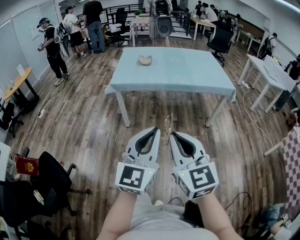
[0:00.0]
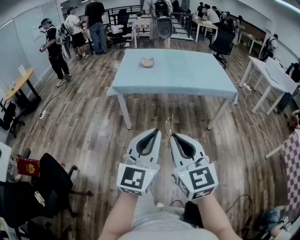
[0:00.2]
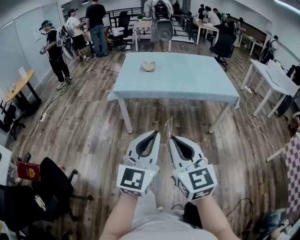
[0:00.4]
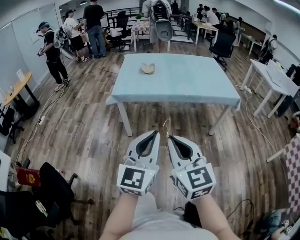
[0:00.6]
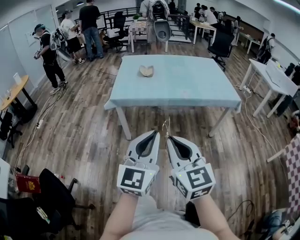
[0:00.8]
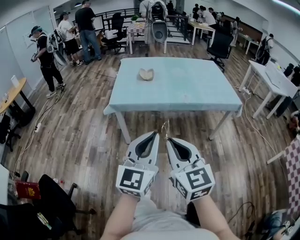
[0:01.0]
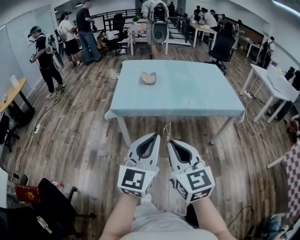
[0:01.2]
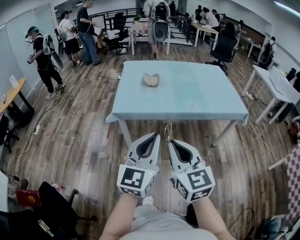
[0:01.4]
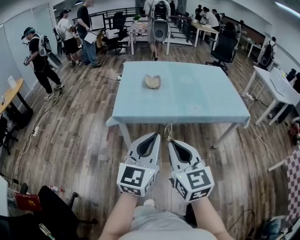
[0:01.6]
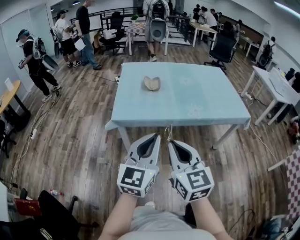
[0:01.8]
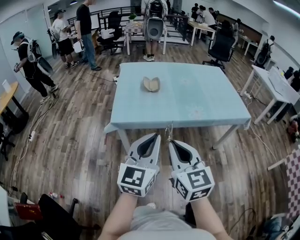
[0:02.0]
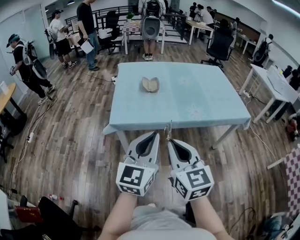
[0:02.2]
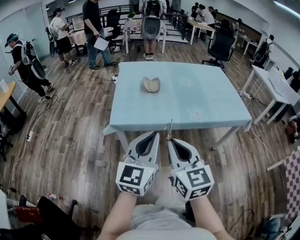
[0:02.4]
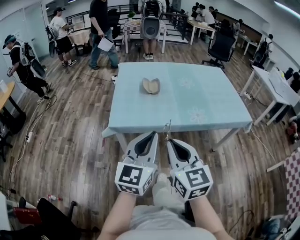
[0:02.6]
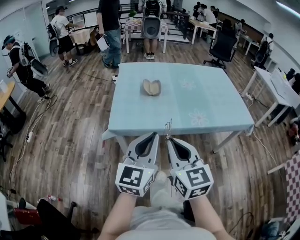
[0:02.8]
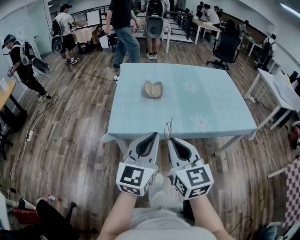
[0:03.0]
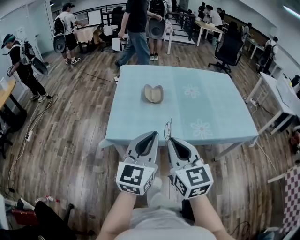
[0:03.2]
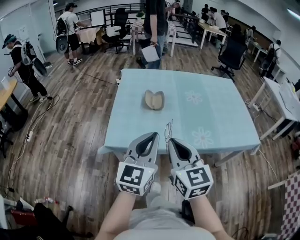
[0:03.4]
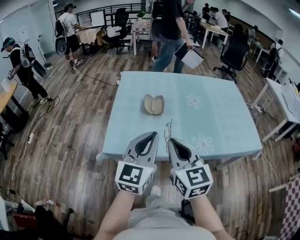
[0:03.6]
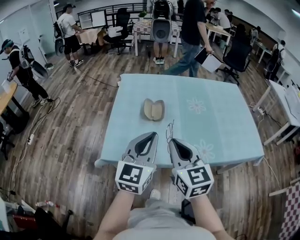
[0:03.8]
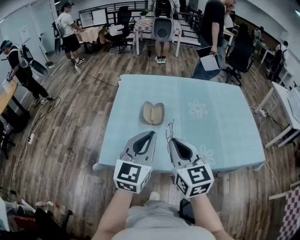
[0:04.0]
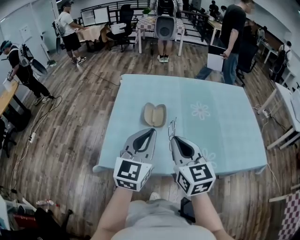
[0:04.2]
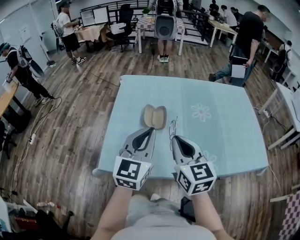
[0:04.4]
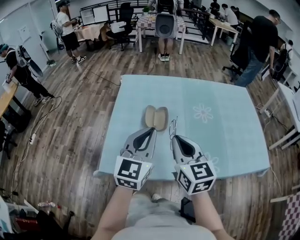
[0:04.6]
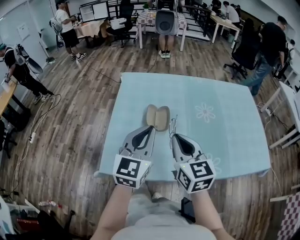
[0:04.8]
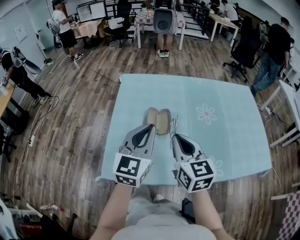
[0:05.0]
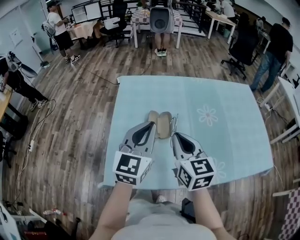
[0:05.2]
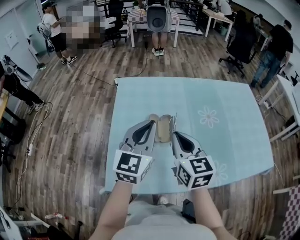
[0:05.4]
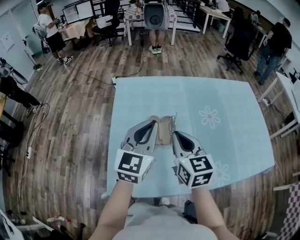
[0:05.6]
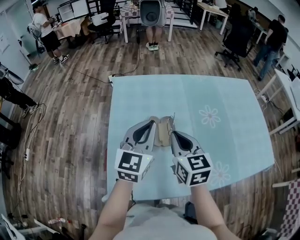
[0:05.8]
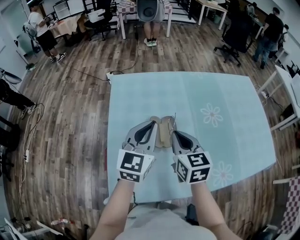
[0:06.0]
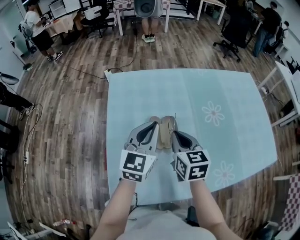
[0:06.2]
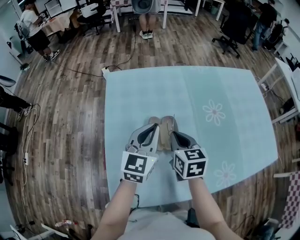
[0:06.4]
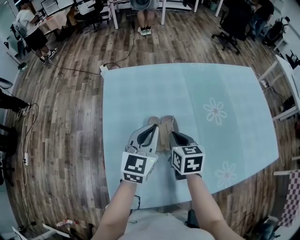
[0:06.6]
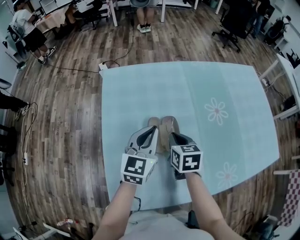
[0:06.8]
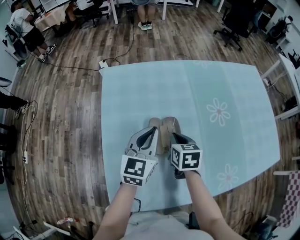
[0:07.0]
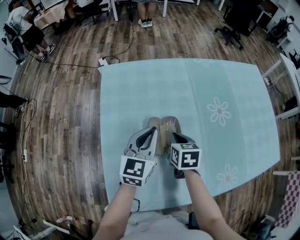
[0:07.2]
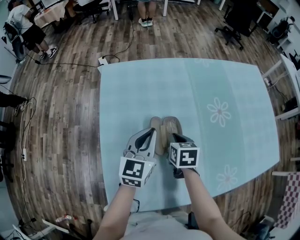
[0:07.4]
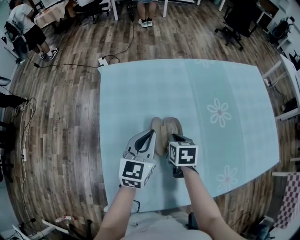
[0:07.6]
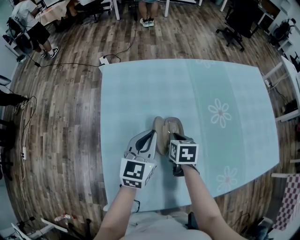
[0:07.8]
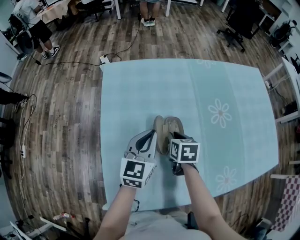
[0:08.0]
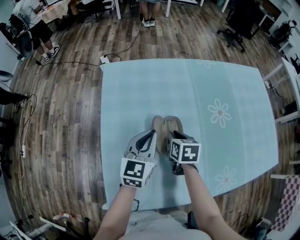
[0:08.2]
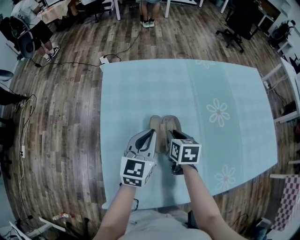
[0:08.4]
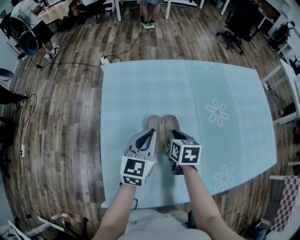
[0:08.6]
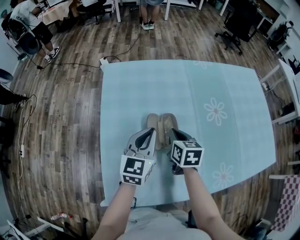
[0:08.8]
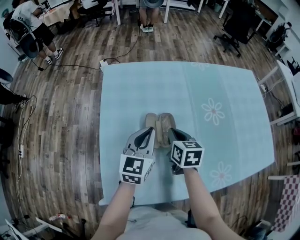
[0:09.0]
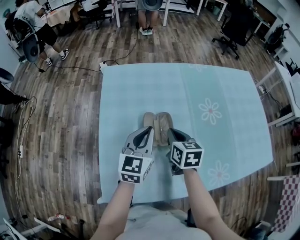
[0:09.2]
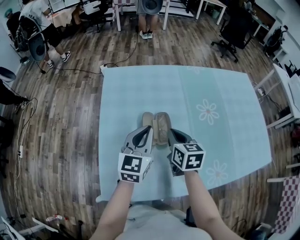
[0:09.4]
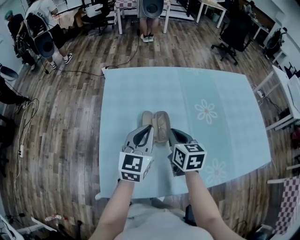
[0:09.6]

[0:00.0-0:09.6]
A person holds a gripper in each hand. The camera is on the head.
0.0 to 1.6 s: The two grippers go about 30 cm forward.
1.6 to 3.2 s: Both grippers move forward, approximately 20 cm.
3.2 to 4.8 s: The two grippers go roughly 25 cm forward.
4.8 to 6.4 s: Both grippers move forward and downward, approximately 20 cm. The right gripper rotates about 30 degrees.
6.4 to 8.0 s: The right gripper shifts roughly 10 cm downward, and changes its angle by about 20 degrees; the left gripper travels downward by about 5 cm.
8.0 to 9.6 s: The right gripper shifts about 15 cm upward and backward, and swivels about 20 degrees. Meanwhile the left gripper heads upward and backward, covering some 10 cm.

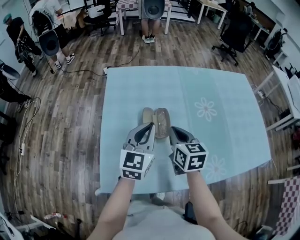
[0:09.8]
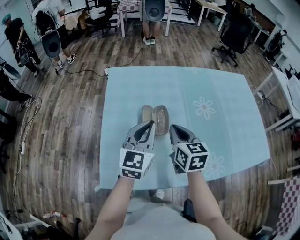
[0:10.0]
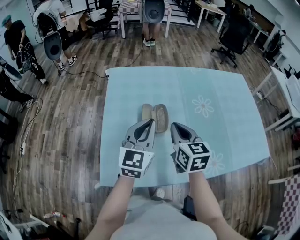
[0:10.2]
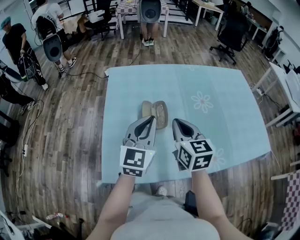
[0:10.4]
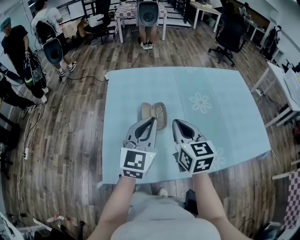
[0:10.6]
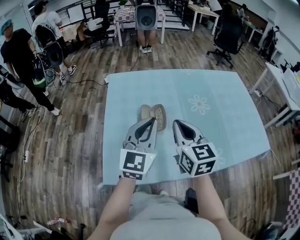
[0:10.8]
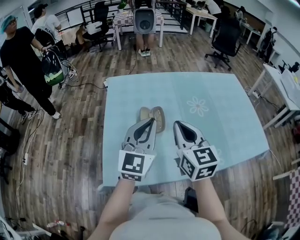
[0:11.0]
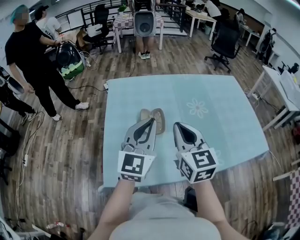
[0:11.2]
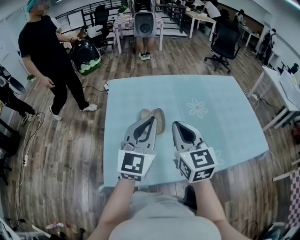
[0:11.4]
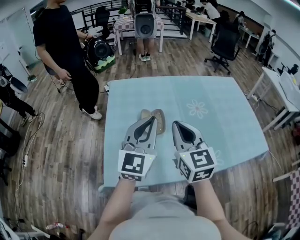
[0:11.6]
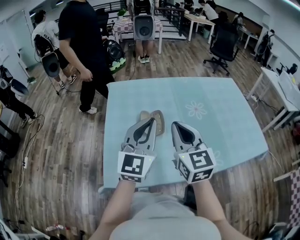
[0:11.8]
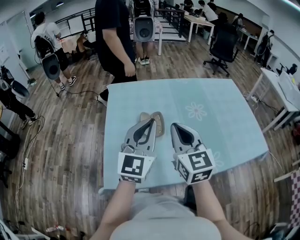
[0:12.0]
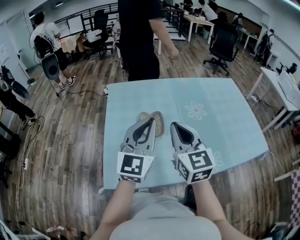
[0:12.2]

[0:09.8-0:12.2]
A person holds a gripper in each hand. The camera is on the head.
9.8 to 11.0 s: Both grippers travel together upward and backward, approximately 15 cm. The right gripper swivels approximately 20 degrees.
11.0 to 12.2 s: The grippers move only a little.

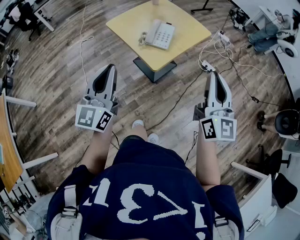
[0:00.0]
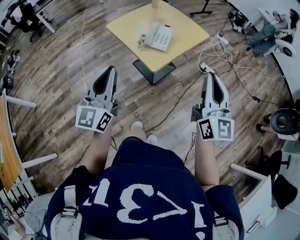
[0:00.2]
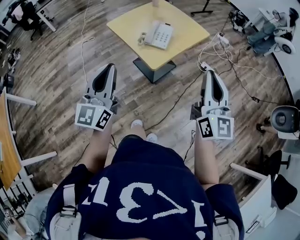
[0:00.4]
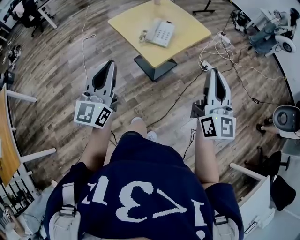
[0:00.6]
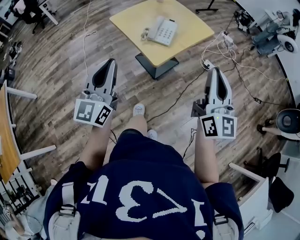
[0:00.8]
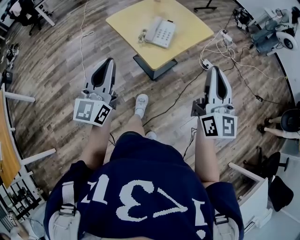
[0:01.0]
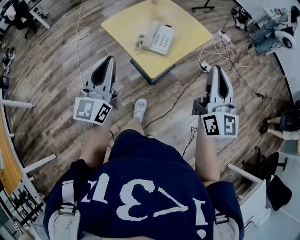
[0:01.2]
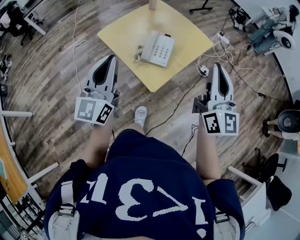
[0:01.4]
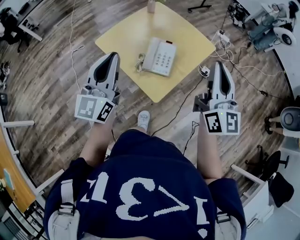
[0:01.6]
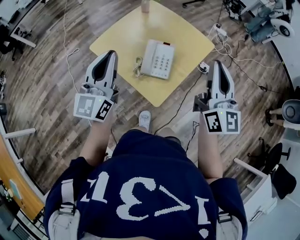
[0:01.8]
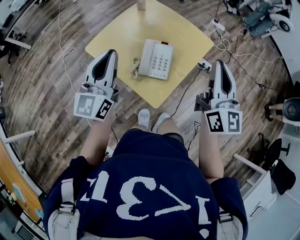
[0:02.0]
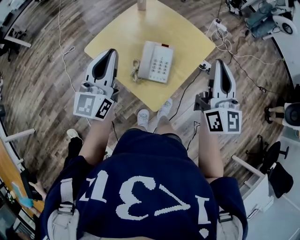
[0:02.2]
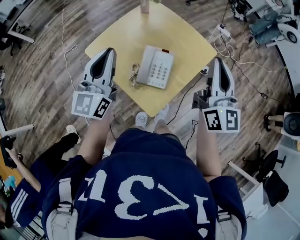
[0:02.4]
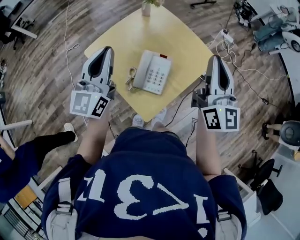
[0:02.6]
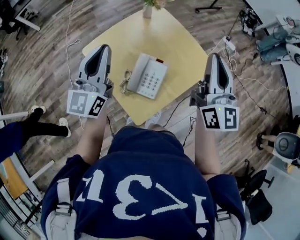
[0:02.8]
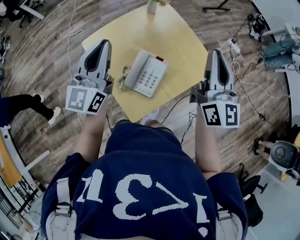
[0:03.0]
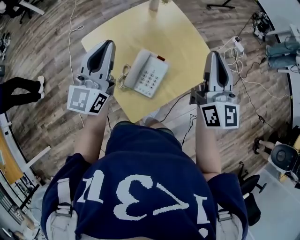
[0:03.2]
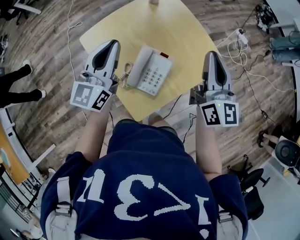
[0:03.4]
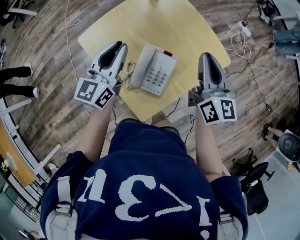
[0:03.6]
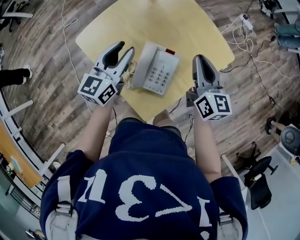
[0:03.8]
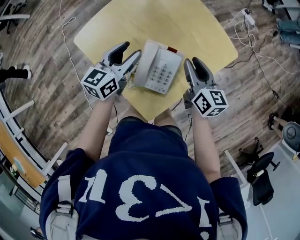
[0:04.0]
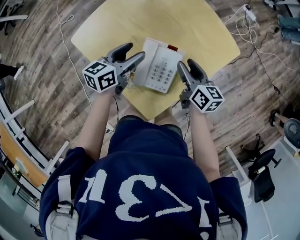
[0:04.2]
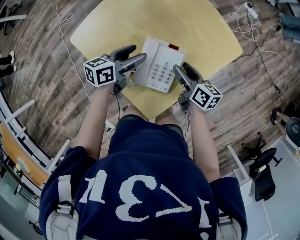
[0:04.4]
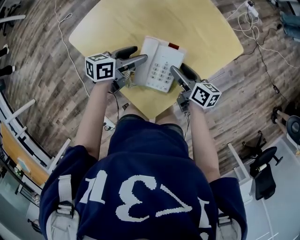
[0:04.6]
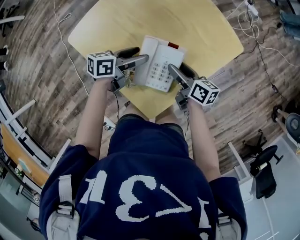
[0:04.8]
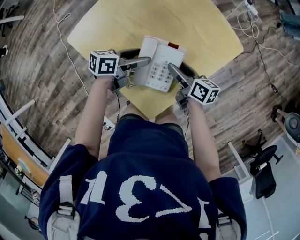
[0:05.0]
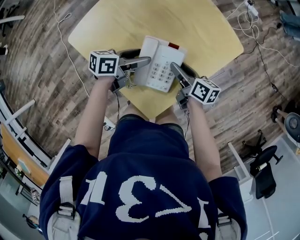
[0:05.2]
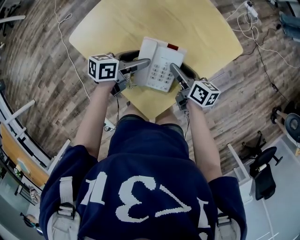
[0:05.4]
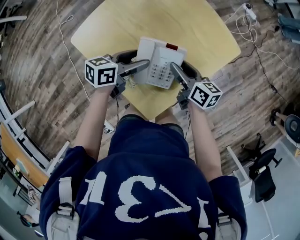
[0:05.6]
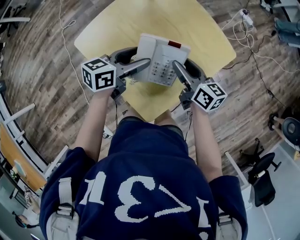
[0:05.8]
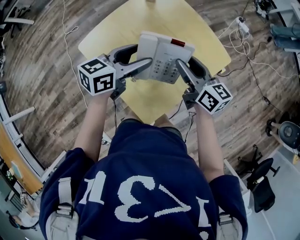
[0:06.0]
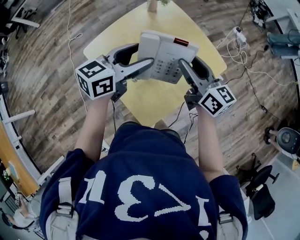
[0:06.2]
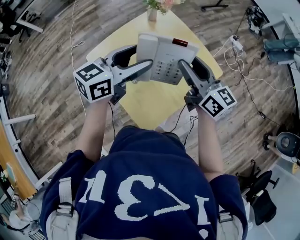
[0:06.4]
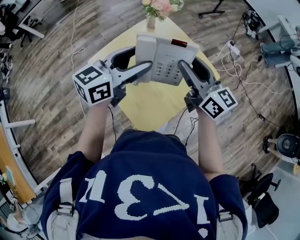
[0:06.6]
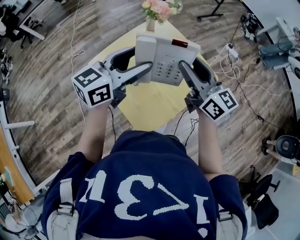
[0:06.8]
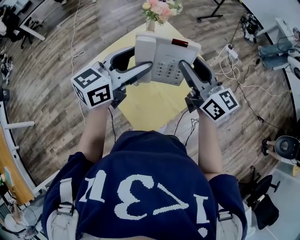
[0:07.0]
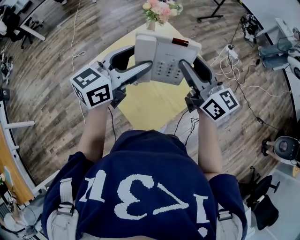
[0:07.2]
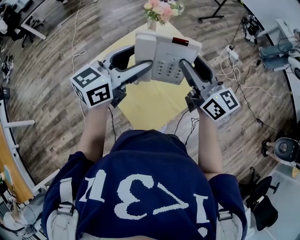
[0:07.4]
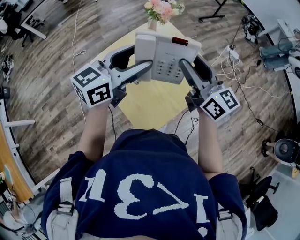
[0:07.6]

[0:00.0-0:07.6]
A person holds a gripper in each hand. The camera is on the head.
0.0 to 1.6 s: Both grippers move forward, roughly 25 cm.
1.6 to 3.0 s: Both grippers move forward, about 20 cm.
3.0 to 4.6 s: Both grippers move downward, approximately 35 cm. The right gripper angles its fingers downward, by approximately 40 degrees, and opens up. The left gripper points its fingers some 30 degrees further downward, and opens its fingers.
4.6 to 6.0 s: Both grippers move upward, roughly 15 cm. The left gripper rotates some 20 degrees; the right gripper rotates roughly 30 degrees.
6.0 to 7.6 s: Both grippers move upward, approximately 15 cm. The right gripper swivels approximately 20 degrees, while the left gripper swivels some 20 degrees.

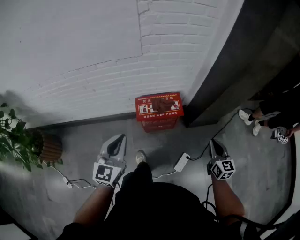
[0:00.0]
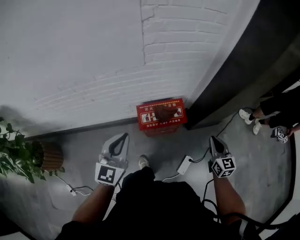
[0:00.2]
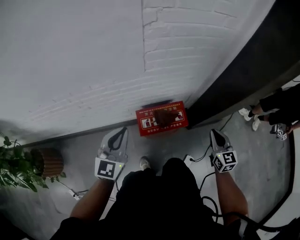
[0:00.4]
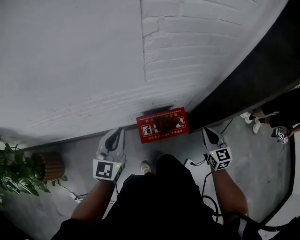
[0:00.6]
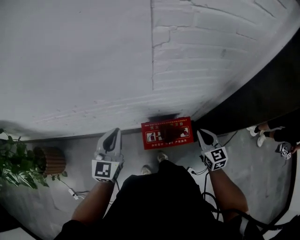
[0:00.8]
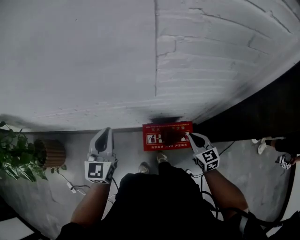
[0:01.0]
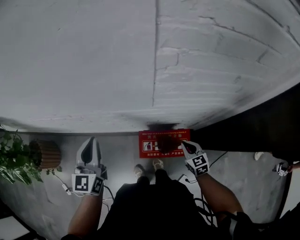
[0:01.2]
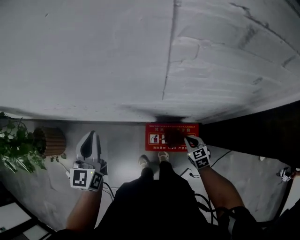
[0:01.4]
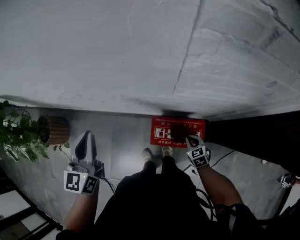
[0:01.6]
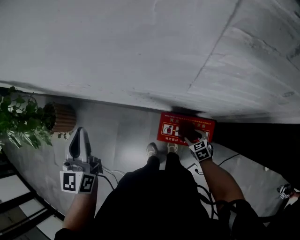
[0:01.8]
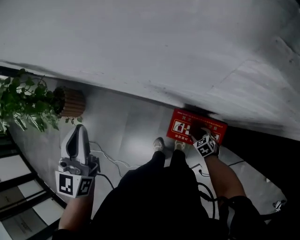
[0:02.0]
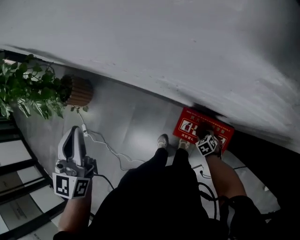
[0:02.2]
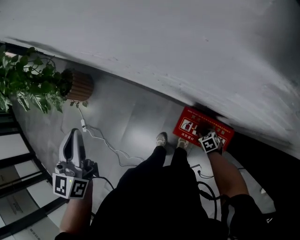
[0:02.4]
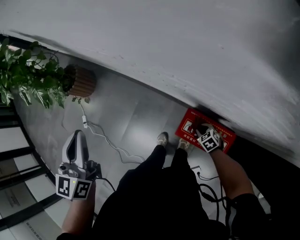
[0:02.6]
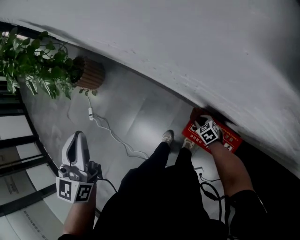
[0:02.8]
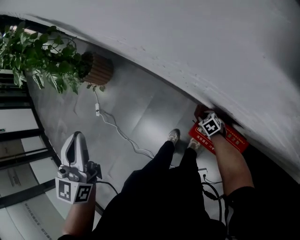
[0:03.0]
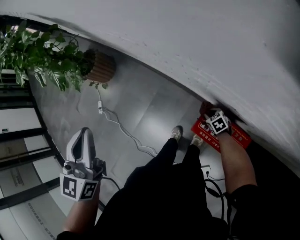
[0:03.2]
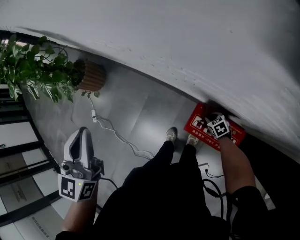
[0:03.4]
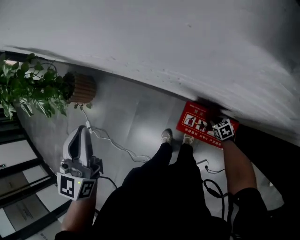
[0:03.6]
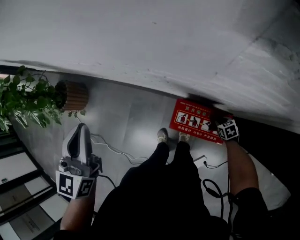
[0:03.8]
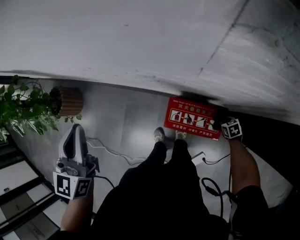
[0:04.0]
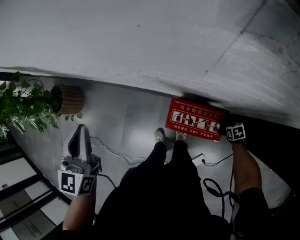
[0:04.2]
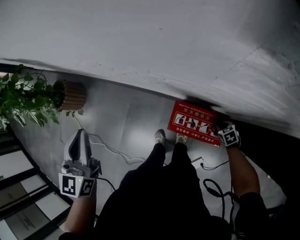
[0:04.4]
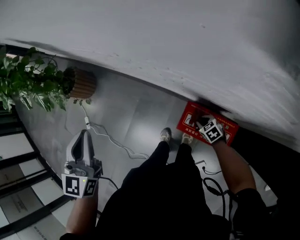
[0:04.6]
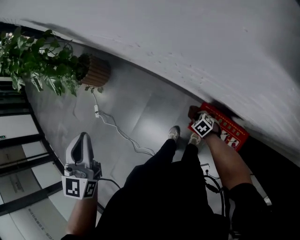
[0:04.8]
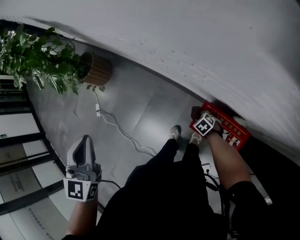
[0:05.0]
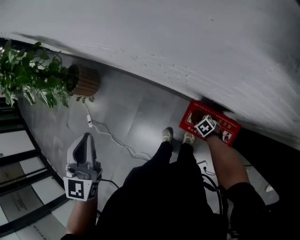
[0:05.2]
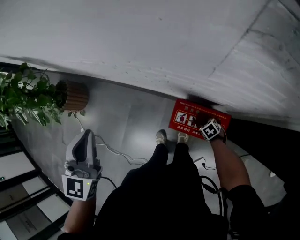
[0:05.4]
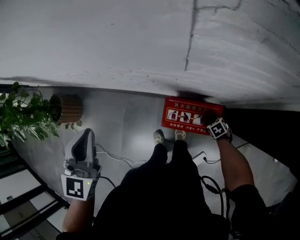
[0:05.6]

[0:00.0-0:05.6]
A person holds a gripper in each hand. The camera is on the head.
0.0 to 1.4 s: The left gripper ends up roughly 30 cm from where it was, and rotates approximately 30 degrees, while the right gripper shifts by approximately 40 cm, and rotates approximately 40 degrees.
1.4 to 2.8 s: The left gripper changes place by roughly 20 cm, and swivels about 30 degrees. Meanwhile the right gripper moves some 25 cm, turns by roughly 40 degrees, and opens its fingers.
2.8 to 4.2 s: The right gripper shifts by about 35 cm, and rotates around the line of its fingers by roughly 40 degrees, clockwise from behind. The left gripper changes place by roughly 10 cm.
4.2 to 5.6 s: The left gripper rotates some 20 degrees.
